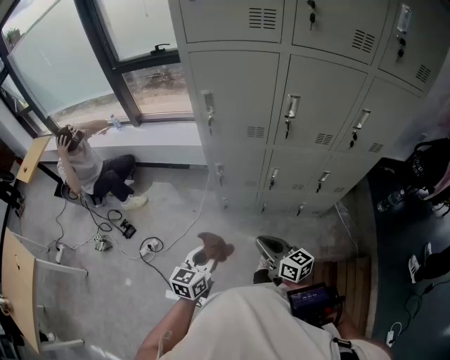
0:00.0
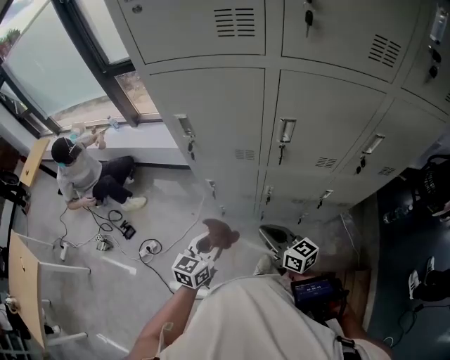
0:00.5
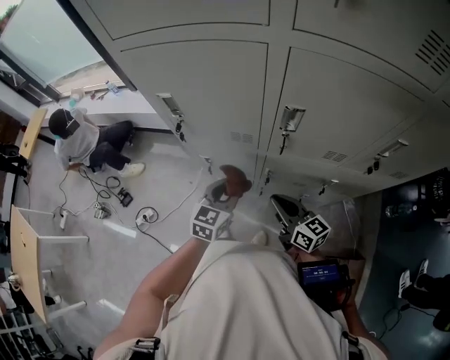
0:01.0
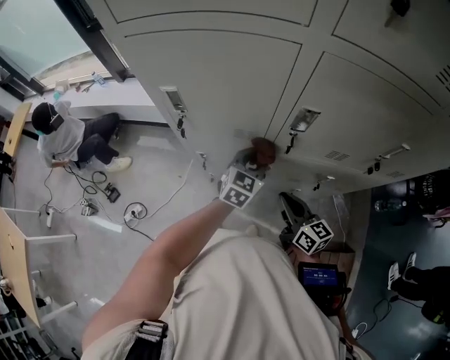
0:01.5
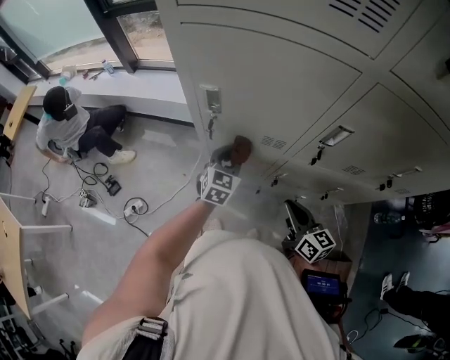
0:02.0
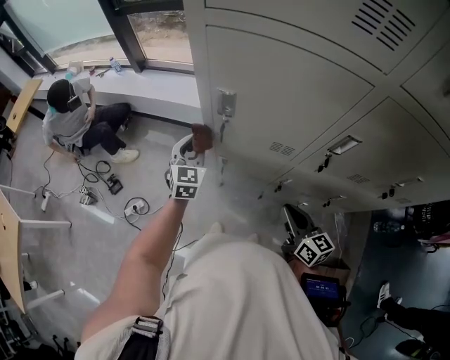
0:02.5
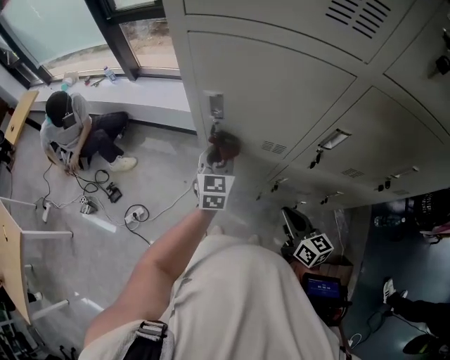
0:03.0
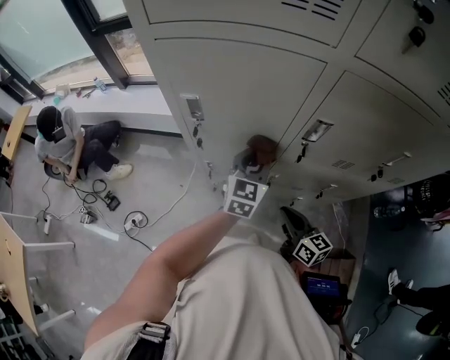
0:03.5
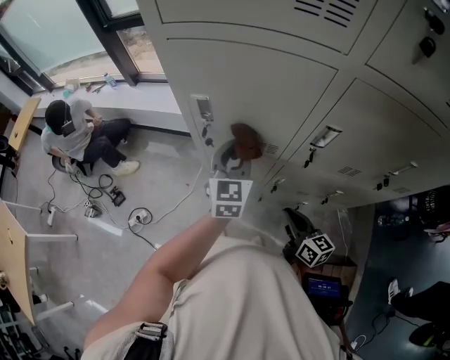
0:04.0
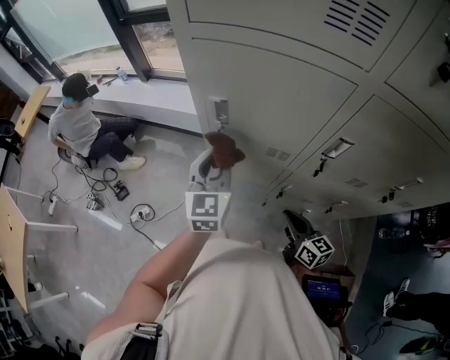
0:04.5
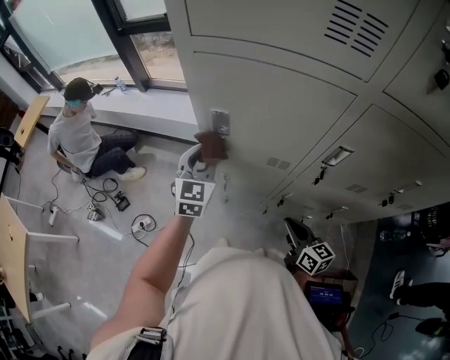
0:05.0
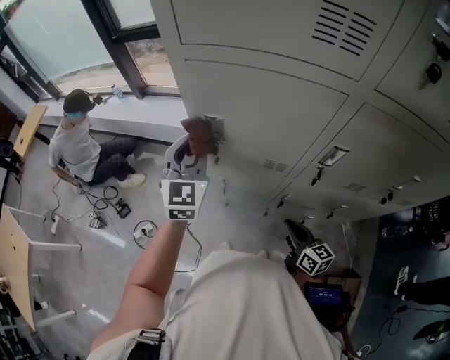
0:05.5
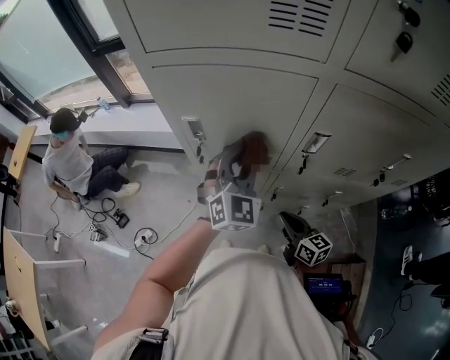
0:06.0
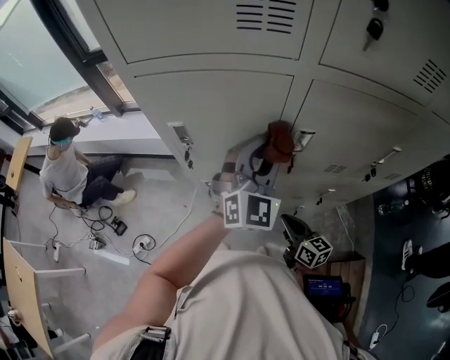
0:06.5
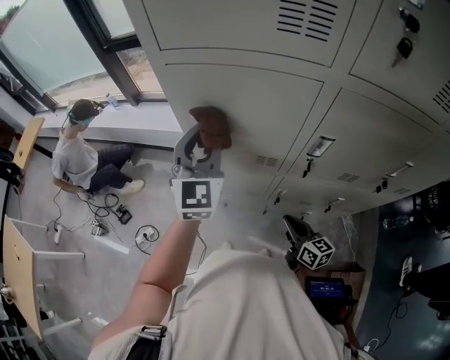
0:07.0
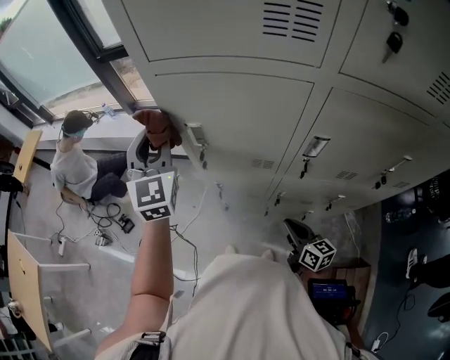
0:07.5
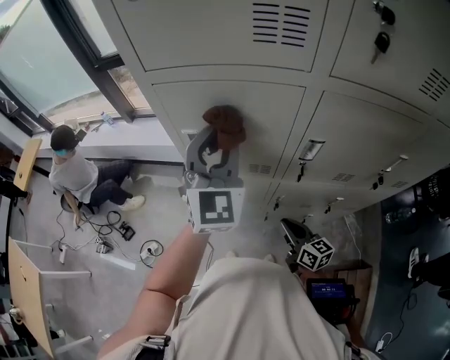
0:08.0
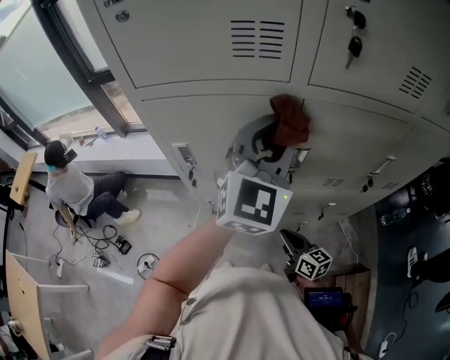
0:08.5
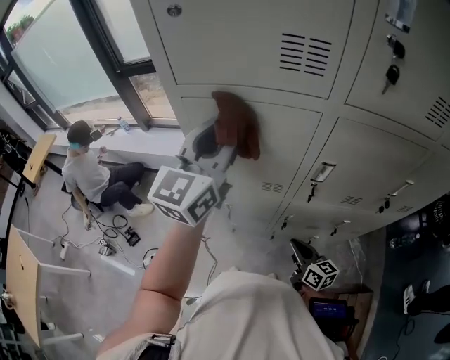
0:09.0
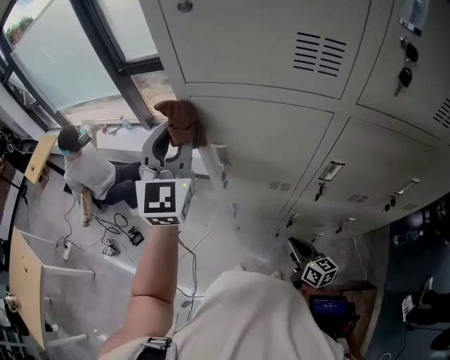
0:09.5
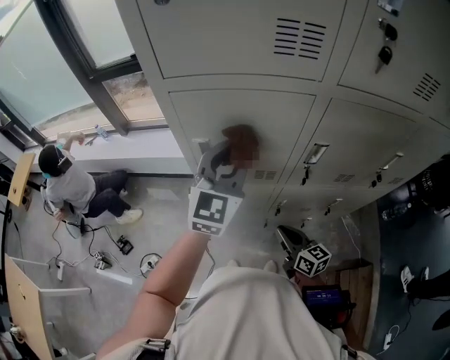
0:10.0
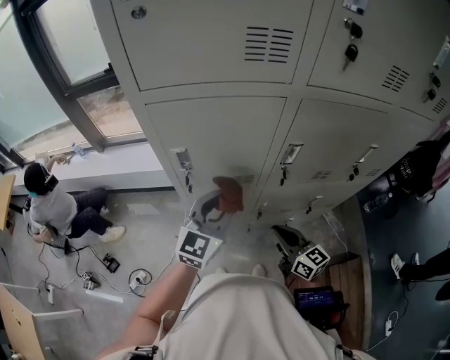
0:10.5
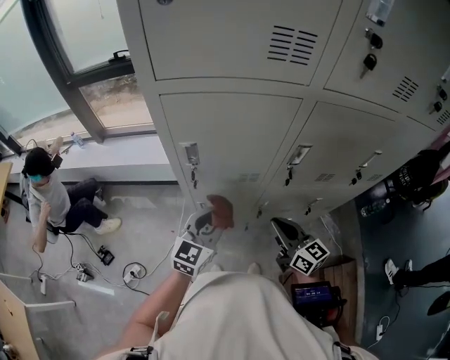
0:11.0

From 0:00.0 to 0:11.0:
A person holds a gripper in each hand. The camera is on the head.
From 0:00.0 to 0:02.0: The left gripper travels forward by about 40 cm, and rotates some 20 degrees. Meanwhile the right gripper moves forward and to the right, approximately 25 cm.
From 0:02.0 to 0:03.5: The left gripper heads upward and to the right, covering approximately 15 cm.
From 0:03.5 to 0:05.5: The left gripper goes about 25 cm to the left and upward, and turns by approximately 30 degrees.
From 0:05.5 to 0:07.5: The left gripper heads upward, covering roughly 10 cm, and moves roughly 25 cm to the right and comes back.
From 0:07.5 to 0:09.0: The left gripper goes some 15 cm to the right and upward, and swivels roughly 40 degrees.
From 0:09.0 to 0:11.0: The right gripper shifts some 10 cm upward. Meanwhile the left gripper shifts roughly 25 cm downward, and rotates approximately 20 degrees.

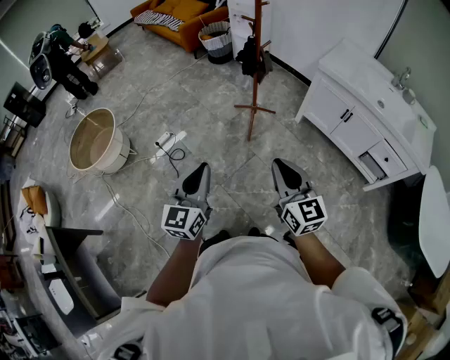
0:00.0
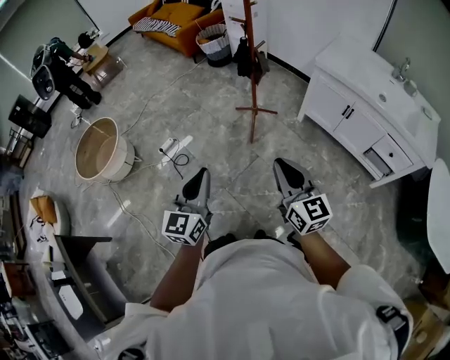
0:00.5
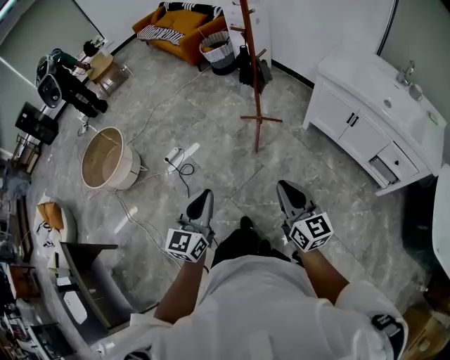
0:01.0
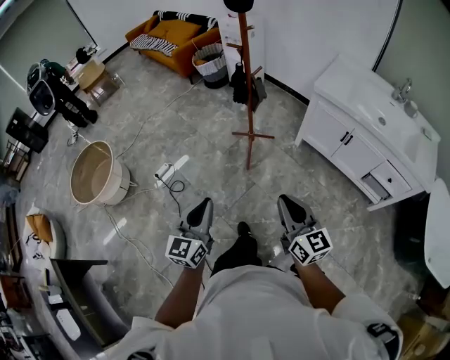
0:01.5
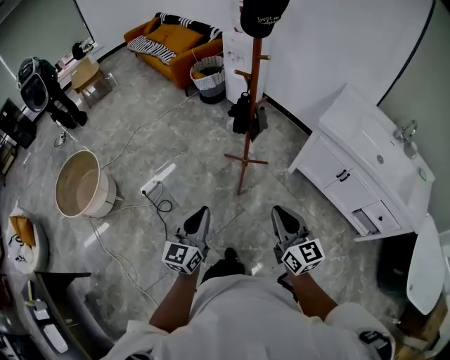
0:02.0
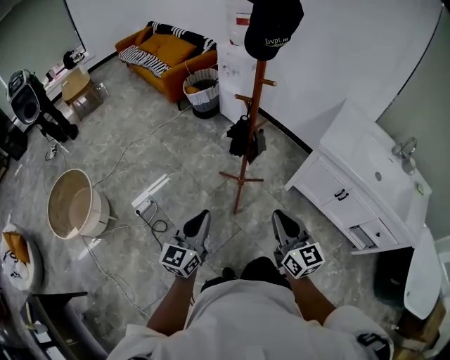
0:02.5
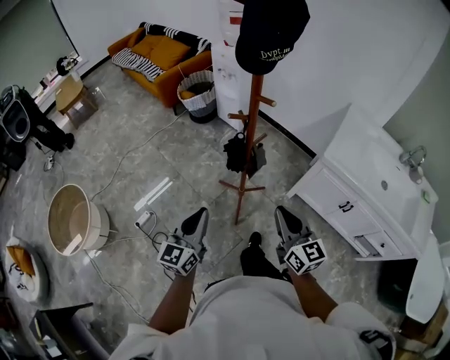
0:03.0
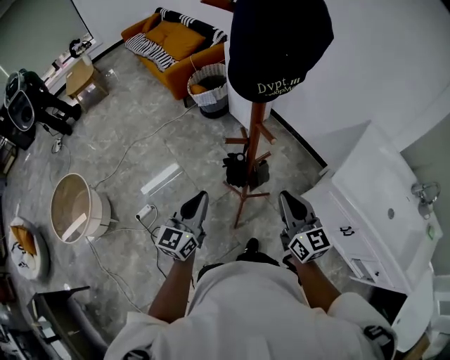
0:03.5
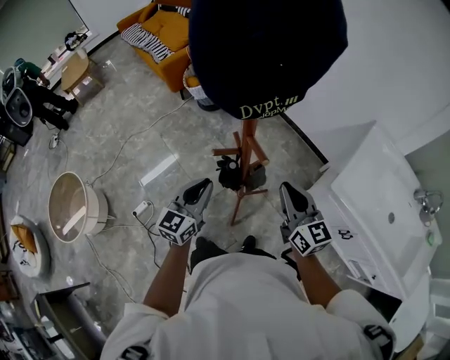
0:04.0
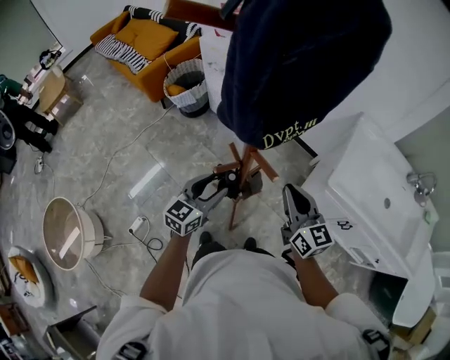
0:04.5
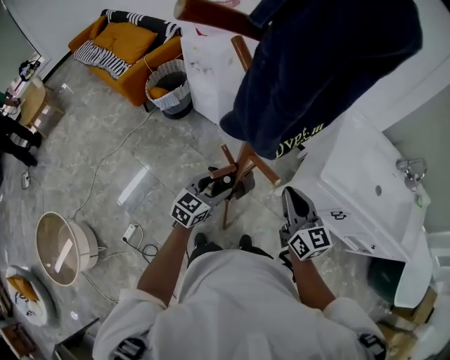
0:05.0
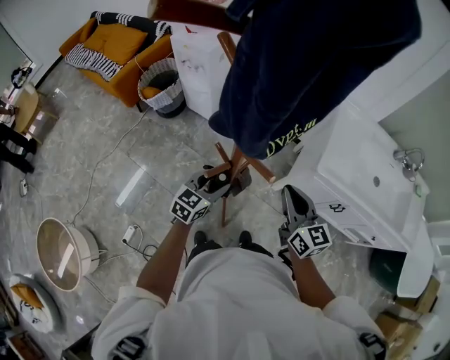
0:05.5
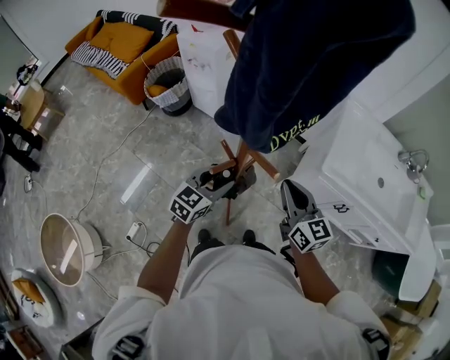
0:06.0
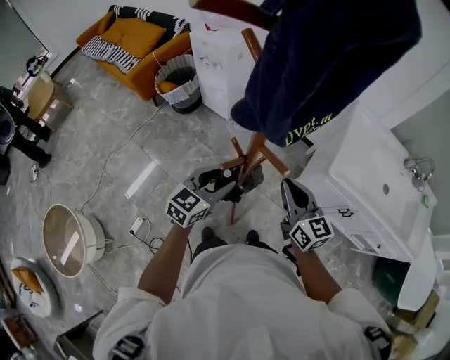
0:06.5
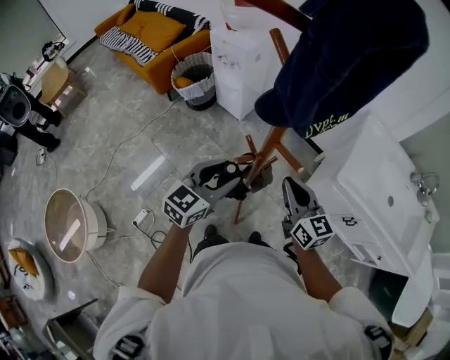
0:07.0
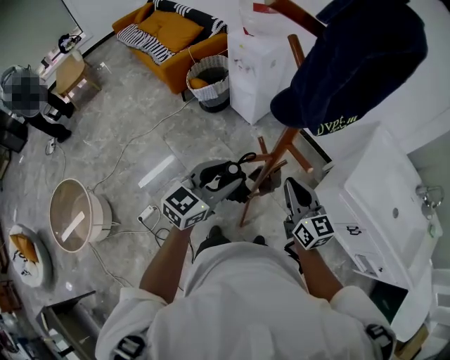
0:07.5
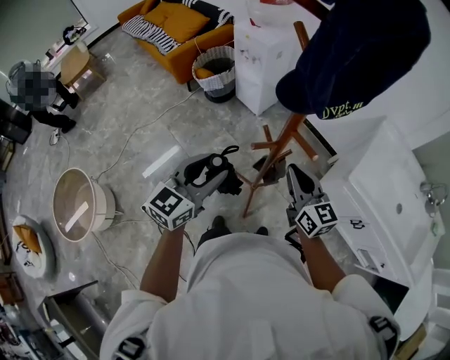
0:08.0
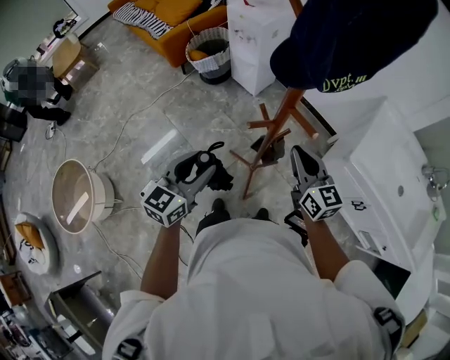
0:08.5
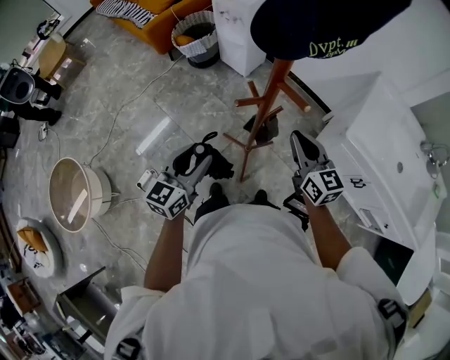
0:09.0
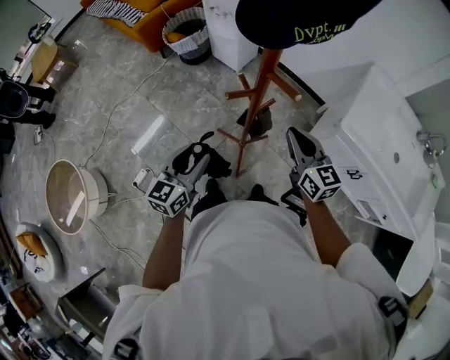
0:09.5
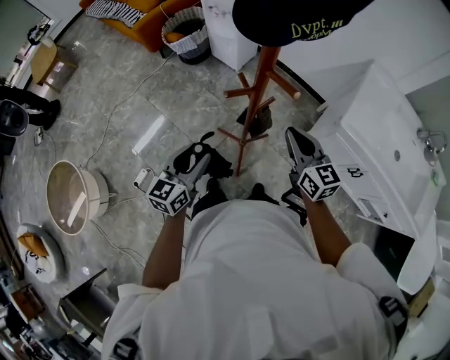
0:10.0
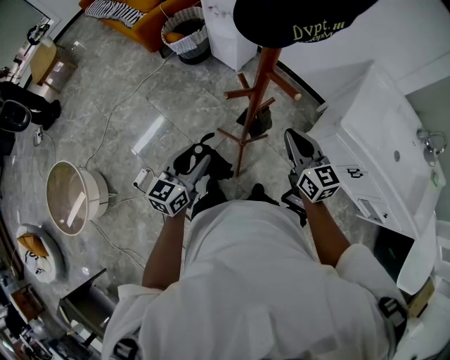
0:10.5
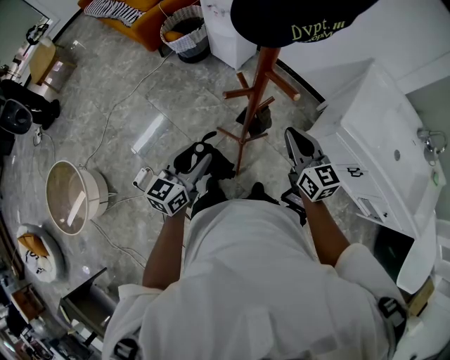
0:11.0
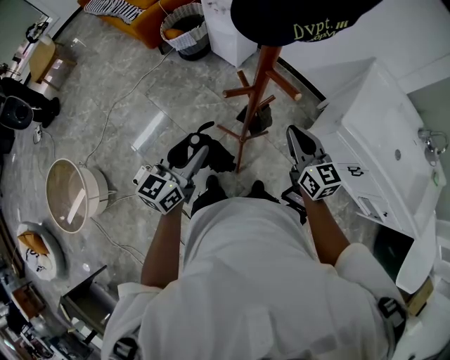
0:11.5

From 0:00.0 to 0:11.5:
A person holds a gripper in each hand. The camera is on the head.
From 0:00.0 to 0:02.0: Both grippers travel together forward, approximately 25 cm.
From 0:02.0 to 0:04.0: The two grippers travel together, forward, roughly 50 cm.
From 0:04.0 to 0:06.0: The left gripper moves about 10 cm, swivels about 30 degrees, and opens.
From 0:06.0 to 0:07.5: The left gripper goes roughly 15 cm upward, backward and to the left, while the right gripper moves to the left, about 5 cm.
From 0:07.5 to 0:09.5: The left gripper shifts about 15 cm downward and backward. The right gripper ends up about 5 cm from where it was.
From 0:09.5 to 0:11.5: The grippers move only a little.

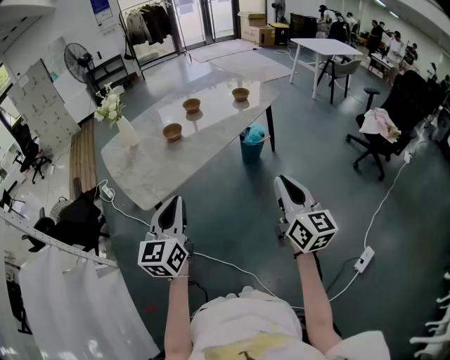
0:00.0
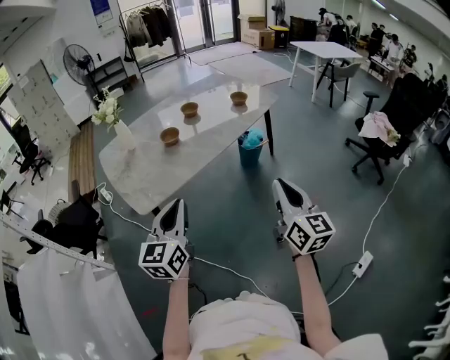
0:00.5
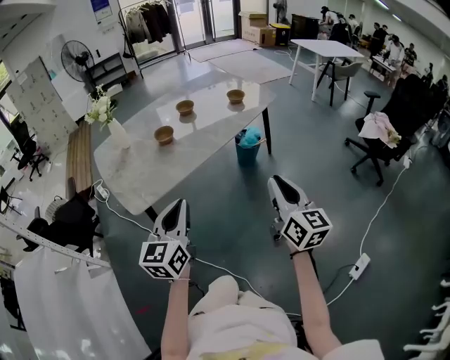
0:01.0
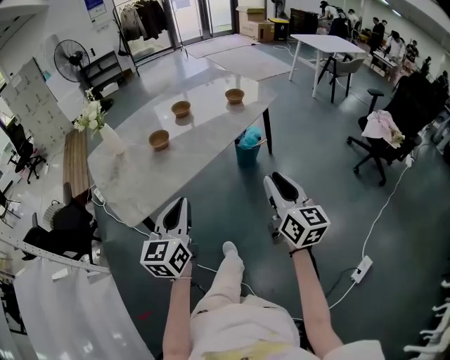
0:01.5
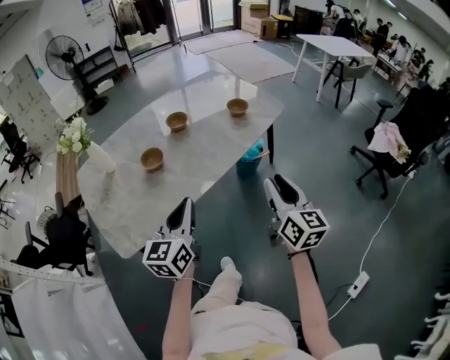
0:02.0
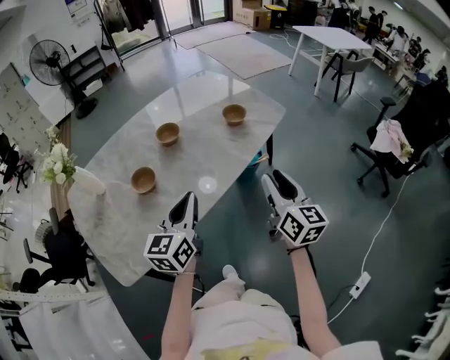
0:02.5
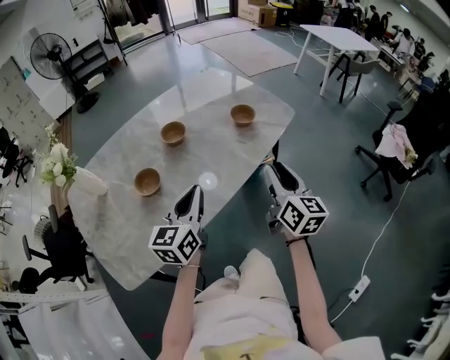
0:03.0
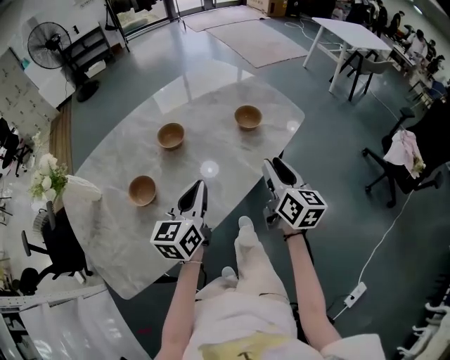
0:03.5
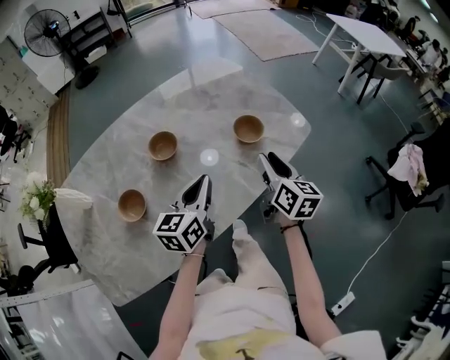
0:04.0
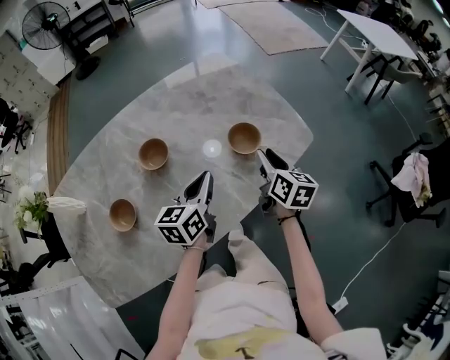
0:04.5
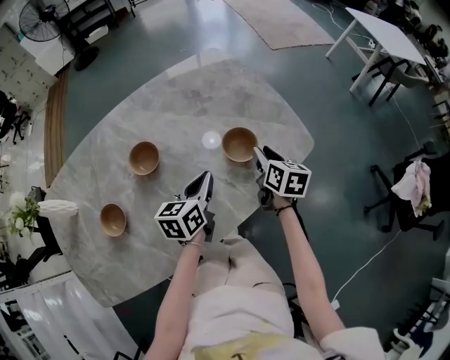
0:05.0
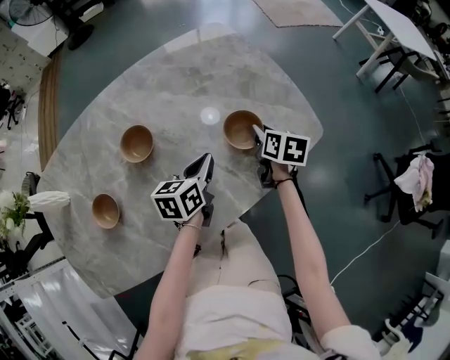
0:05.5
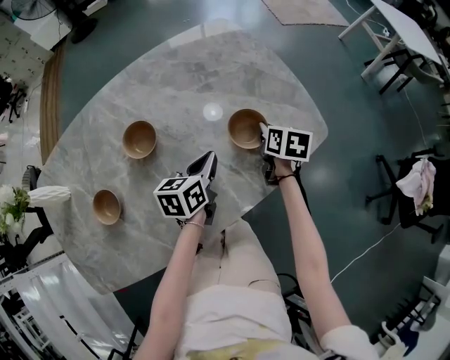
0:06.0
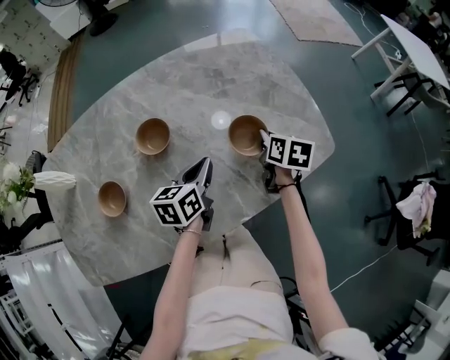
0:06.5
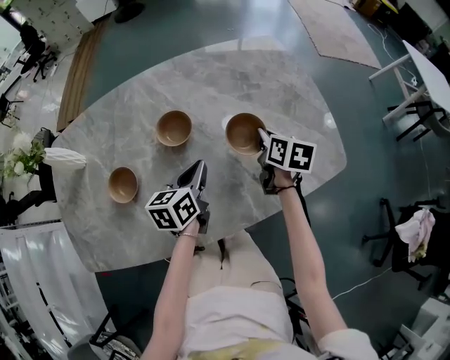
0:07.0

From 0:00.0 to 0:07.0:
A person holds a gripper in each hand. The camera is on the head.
From 0:00.0 to 0:02.0: Both grippers travel together forward, some 25 cm. The right gripper opens.
From 0:02.0 to 0:03.5: Both grippers move forward, about 30 cm.
From 0:03.5 to 0:05.0: Both grippers travel together forward and downward, approximately 30 cm. The right gripper changes its angle by some 20 degrees.
From 0:05.0 to 0:07.0: The right gripper heads to the left and forward, covering about 15 cm, and closes its fingers. The left gripper moves to the left, roughly 10 cm.
